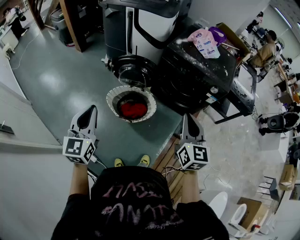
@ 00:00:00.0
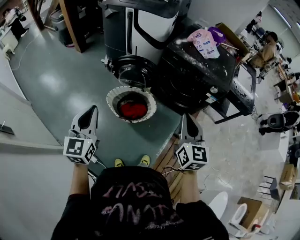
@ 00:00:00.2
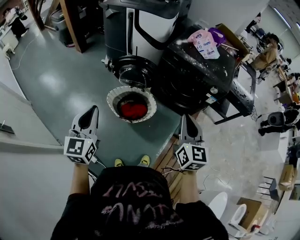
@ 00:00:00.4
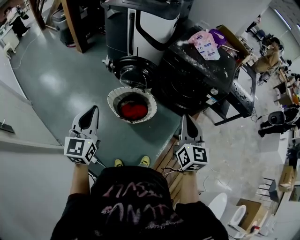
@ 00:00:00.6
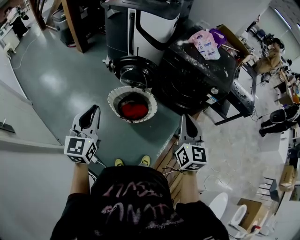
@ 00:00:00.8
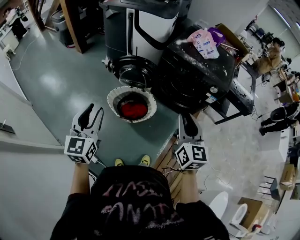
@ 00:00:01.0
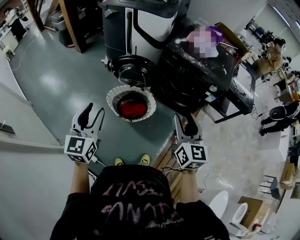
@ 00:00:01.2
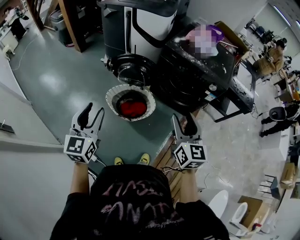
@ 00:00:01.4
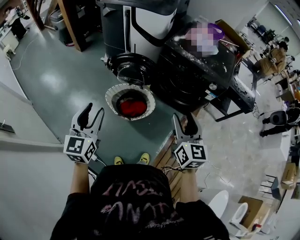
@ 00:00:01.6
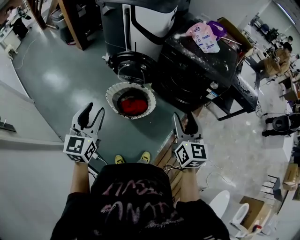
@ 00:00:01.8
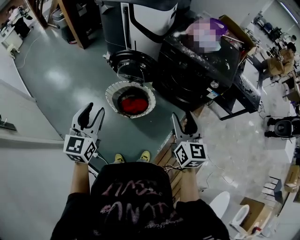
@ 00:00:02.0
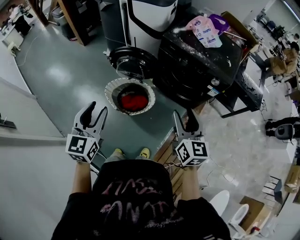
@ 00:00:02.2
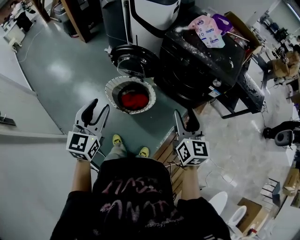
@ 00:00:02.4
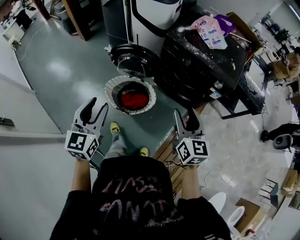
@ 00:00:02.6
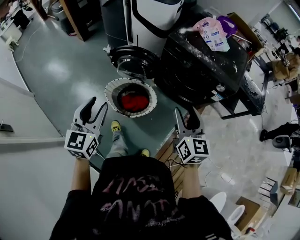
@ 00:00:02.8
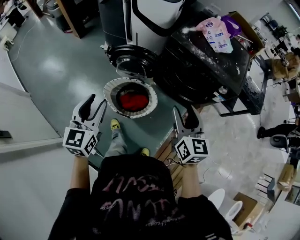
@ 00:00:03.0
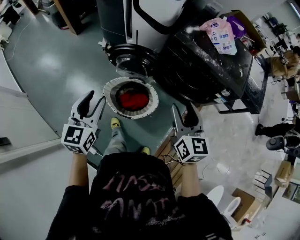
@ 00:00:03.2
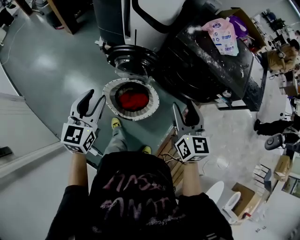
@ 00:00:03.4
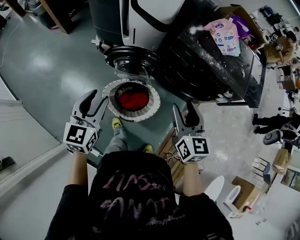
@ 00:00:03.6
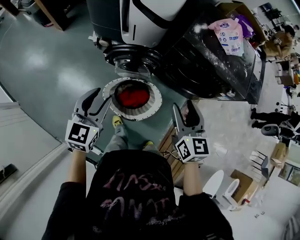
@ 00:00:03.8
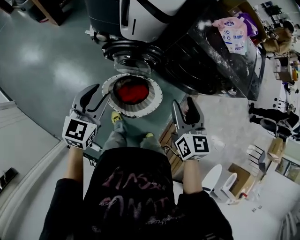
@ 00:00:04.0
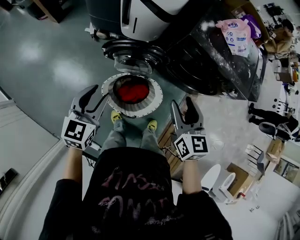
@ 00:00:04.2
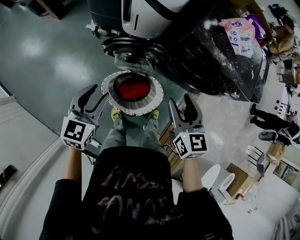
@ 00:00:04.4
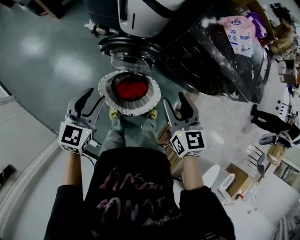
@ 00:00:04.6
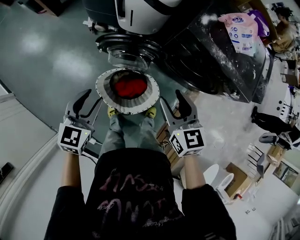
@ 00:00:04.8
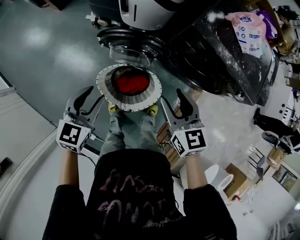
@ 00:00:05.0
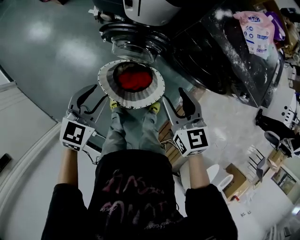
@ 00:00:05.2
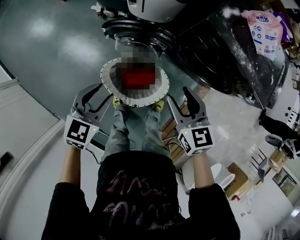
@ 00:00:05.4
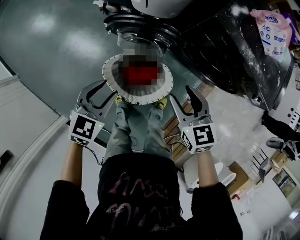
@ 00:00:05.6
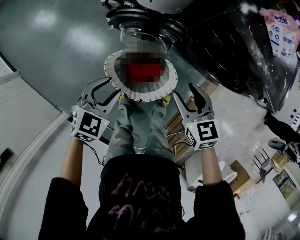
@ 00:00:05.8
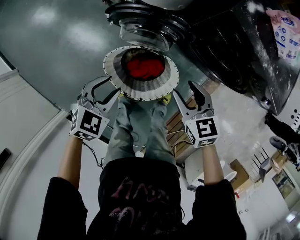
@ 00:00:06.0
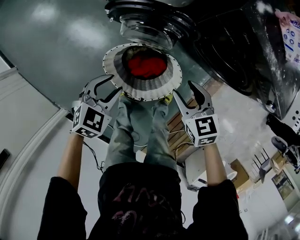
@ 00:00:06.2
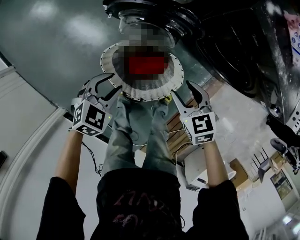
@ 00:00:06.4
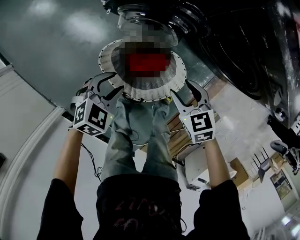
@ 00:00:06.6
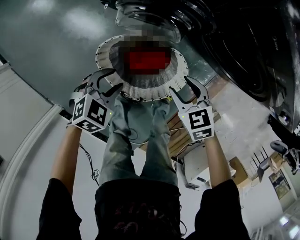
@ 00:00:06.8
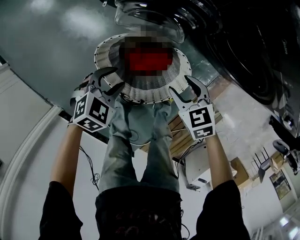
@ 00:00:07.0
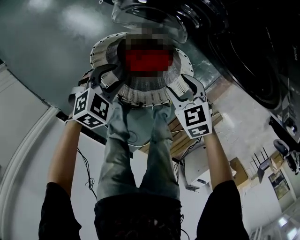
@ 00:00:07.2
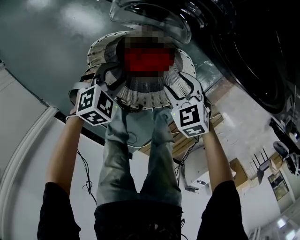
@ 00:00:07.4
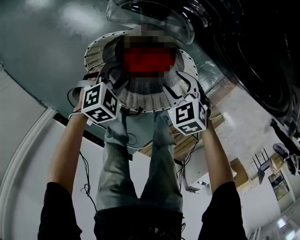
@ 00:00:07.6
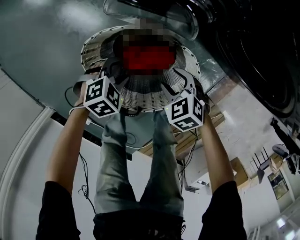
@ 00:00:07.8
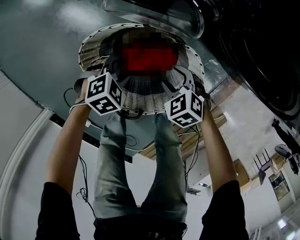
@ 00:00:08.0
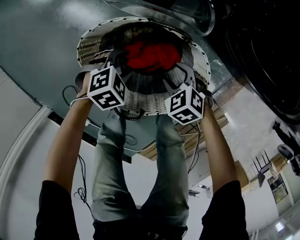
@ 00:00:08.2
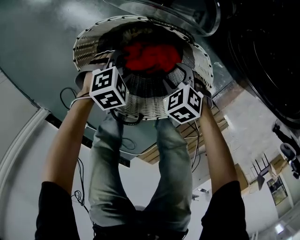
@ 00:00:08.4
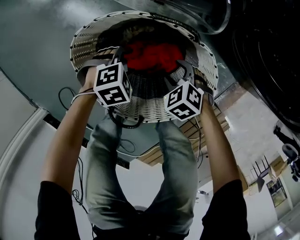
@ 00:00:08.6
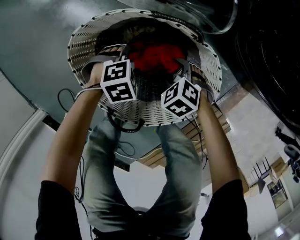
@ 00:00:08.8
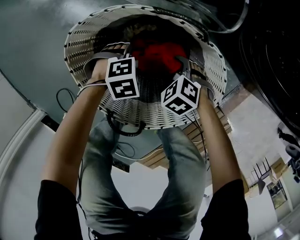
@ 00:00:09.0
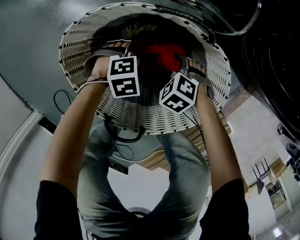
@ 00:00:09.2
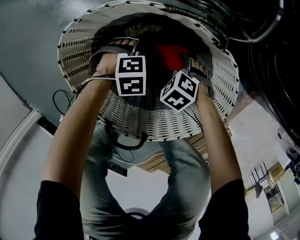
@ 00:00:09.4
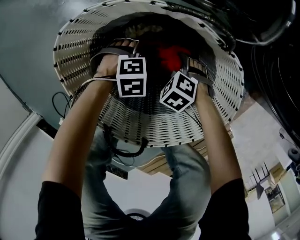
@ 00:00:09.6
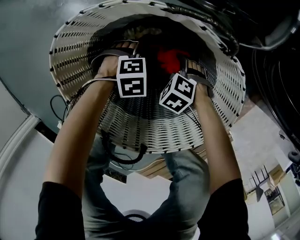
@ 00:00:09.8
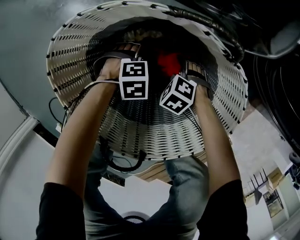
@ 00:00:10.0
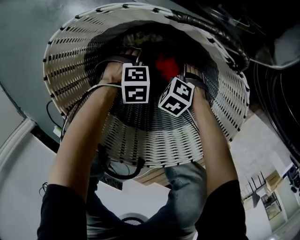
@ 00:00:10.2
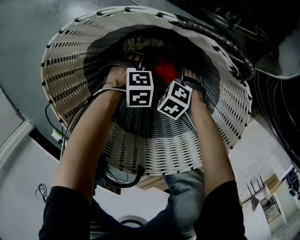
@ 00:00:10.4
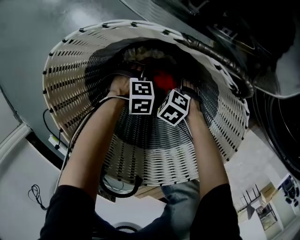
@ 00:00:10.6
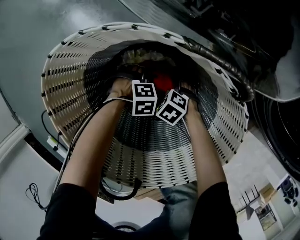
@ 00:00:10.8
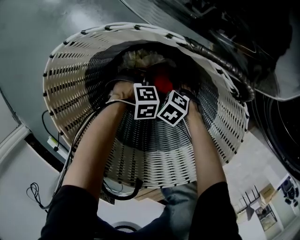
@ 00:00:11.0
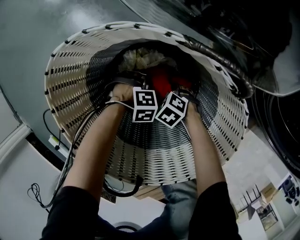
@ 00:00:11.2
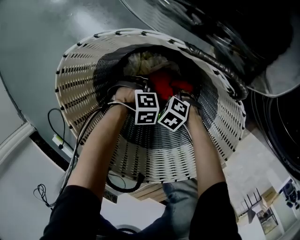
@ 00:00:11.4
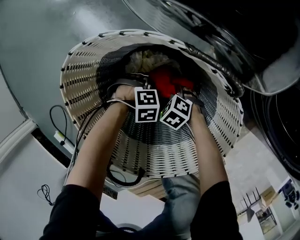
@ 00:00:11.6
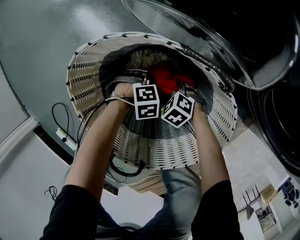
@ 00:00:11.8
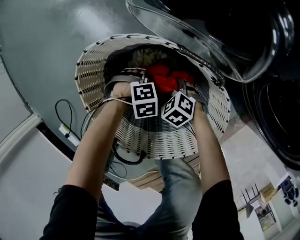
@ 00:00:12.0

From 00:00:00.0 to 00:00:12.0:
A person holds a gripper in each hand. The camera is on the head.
From 00:00:00.0 to 00:00:01.6: The right gripper opens.
From 00:00:01.6 to 00:00:03.0: The two grippers go about 10 cm forward.
From 00:00:03.0 to 00:00:04.4: The right gripper moves to the left and forward, about 20 cm; the left gripper is displaced forward, to the left and downward by approximately 25 cm, and swivels some 20 degrees.
From 00:00:04.4 to 00:00:06.0: Both grippers travel together downward, approximately 20 cm. The right gripper turns by about 30 degrees, while the left gripper rotates roughly 30 degrees.
From 00:00:06.0 to 00:00:07.6: Both grippers travel together downward, about 30 cm. The right gripper turns by some 30 degrees; the left gripper changes its angle by some 20 degrees.
From 00:00:07.6 to 00:00:09.0: The two grippers go approximately 20 cm downward. The right gripper changes its angle by about 20 degrees.
From 00:00:09.0 to 00:00:10.4: Both grippers travel together downward, about 15 cm. The right gripper opens its fingers. Meanwhile the left gripper opens its fingers.
From 00:00:10.4 to 00:00:12.0: The grippers both shift upward by approximately 10 cm. The right gripper closes its fingers; the left gripper closes its fingers.

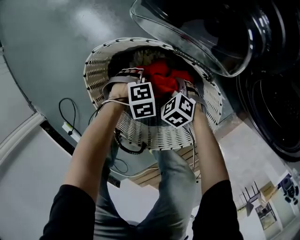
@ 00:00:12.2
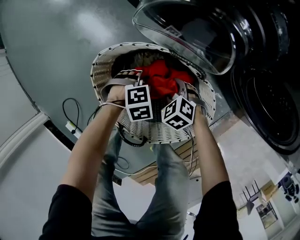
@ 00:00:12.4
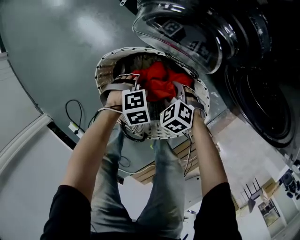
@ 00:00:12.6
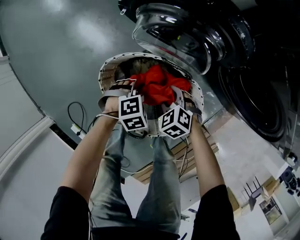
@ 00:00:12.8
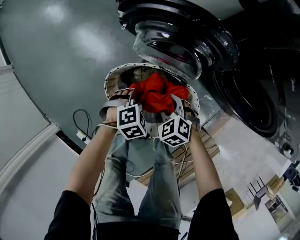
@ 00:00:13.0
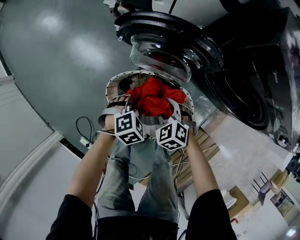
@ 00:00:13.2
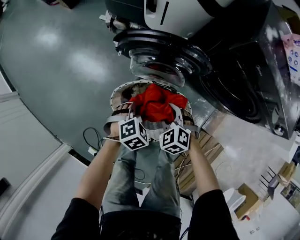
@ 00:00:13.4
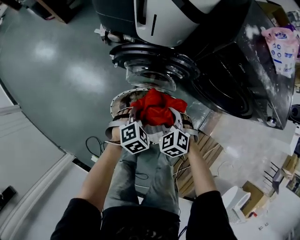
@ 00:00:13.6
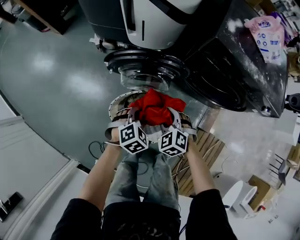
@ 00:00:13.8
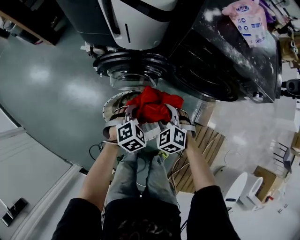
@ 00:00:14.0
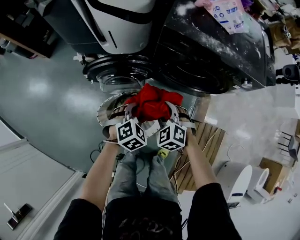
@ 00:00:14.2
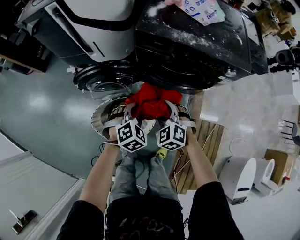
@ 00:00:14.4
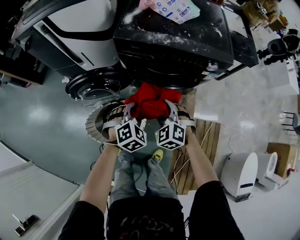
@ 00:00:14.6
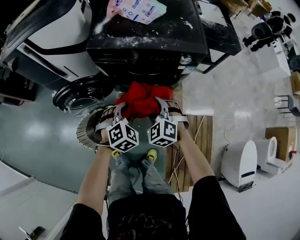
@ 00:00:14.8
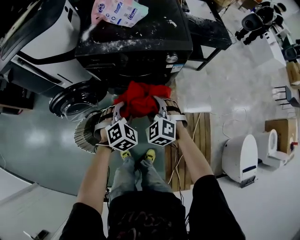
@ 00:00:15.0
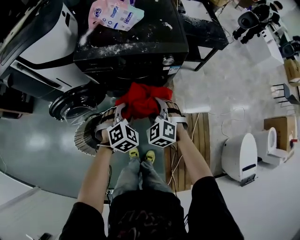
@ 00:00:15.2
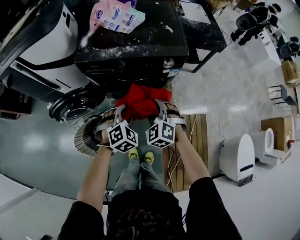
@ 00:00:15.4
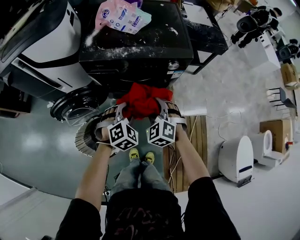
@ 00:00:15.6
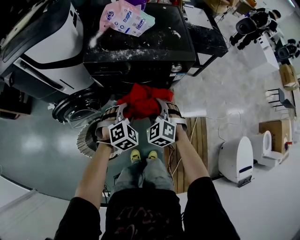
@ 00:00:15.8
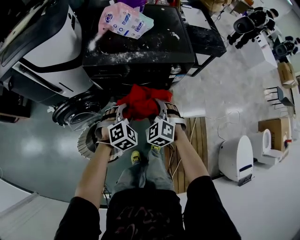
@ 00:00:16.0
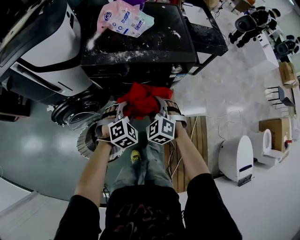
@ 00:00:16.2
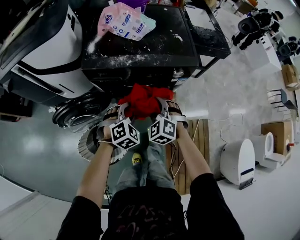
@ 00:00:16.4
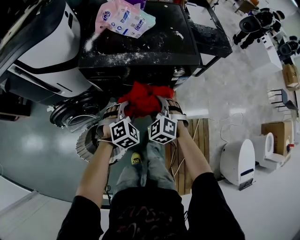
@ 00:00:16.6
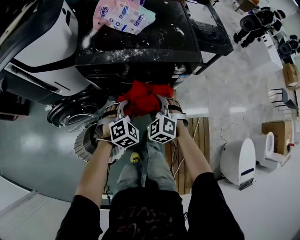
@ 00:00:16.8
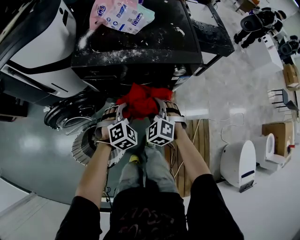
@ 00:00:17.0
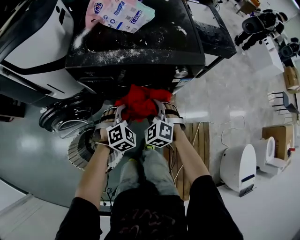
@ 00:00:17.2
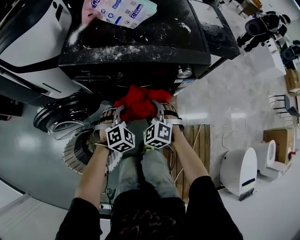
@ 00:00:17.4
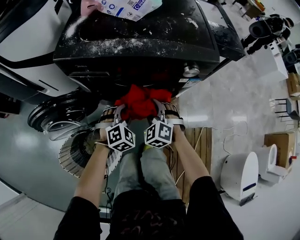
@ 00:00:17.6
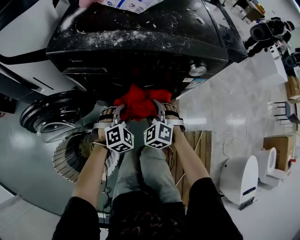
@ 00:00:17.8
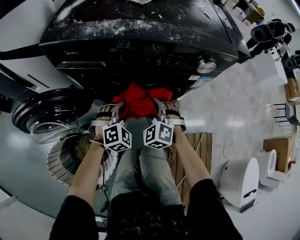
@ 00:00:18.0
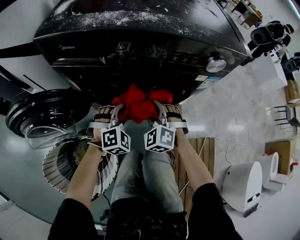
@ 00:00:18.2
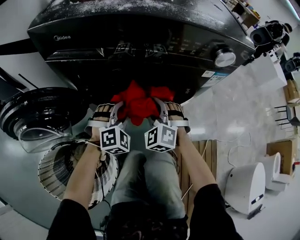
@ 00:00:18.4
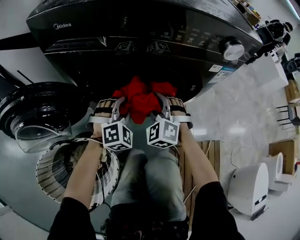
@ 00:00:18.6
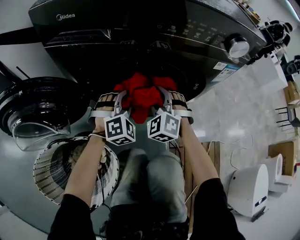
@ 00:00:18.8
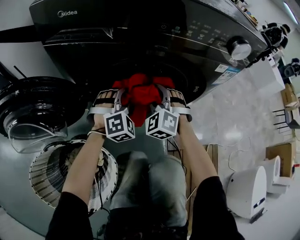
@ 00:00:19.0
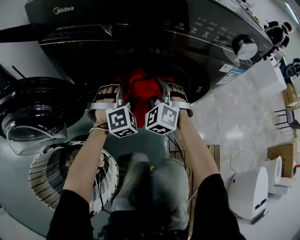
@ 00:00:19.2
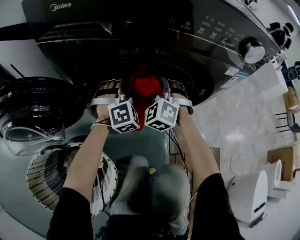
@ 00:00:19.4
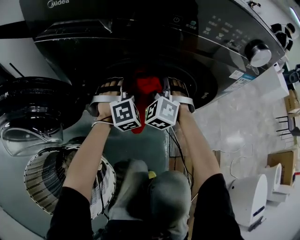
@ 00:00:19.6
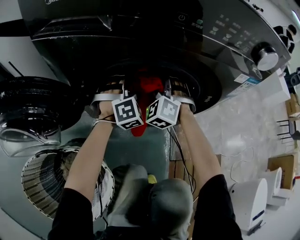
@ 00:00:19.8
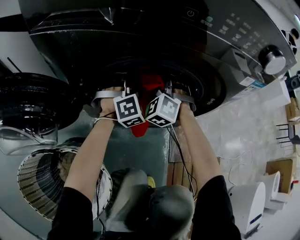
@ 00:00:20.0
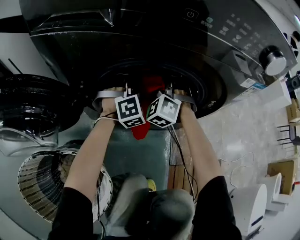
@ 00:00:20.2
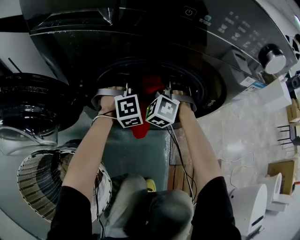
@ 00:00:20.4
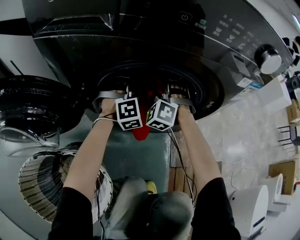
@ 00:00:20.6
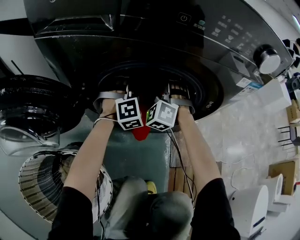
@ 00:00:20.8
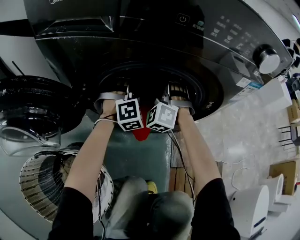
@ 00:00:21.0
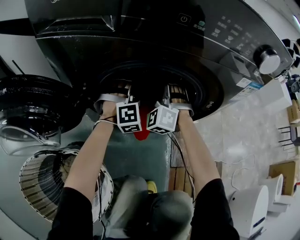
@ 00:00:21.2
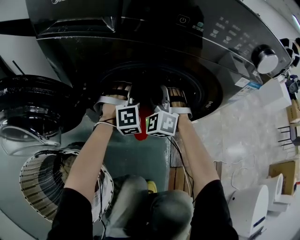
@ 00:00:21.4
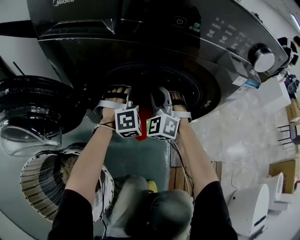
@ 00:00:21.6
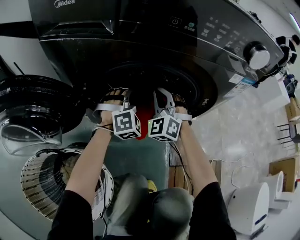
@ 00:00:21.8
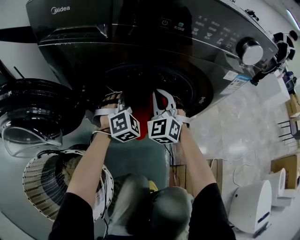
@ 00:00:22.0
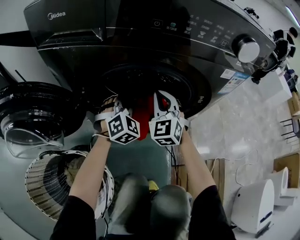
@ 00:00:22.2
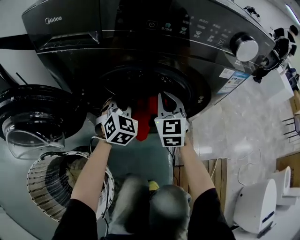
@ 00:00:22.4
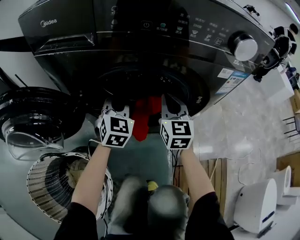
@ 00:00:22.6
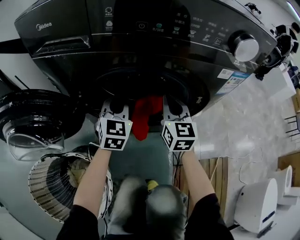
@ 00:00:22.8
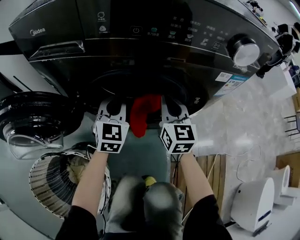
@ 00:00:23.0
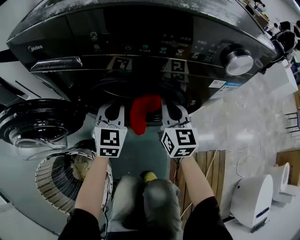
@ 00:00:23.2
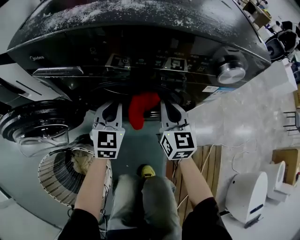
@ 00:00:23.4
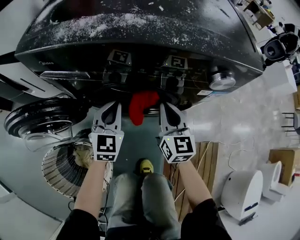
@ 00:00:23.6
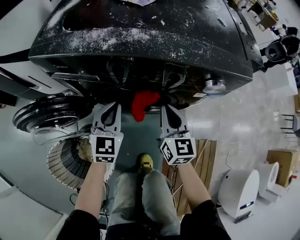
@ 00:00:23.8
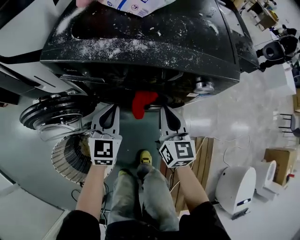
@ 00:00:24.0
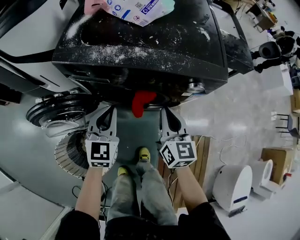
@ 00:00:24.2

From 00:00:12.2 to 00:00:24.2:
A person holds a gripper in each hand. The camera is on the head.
From 00:00:12.2 to 00:00:13.8: The grippers both shift upward by approximately 40 cm. The right gripper rotates roughly 30 degrees.
From 00:00:13.8 to 00:00:15.2: The two grippers go roughly 40 cm to the right and upward. The right gripper rotates some 30 degrees. The left gripper swivels about 30 degrees.
From 00:00:15.2 to 00:00:16.6: The two grippers go about 5 cm forward.
From 00:00:16.6 to 00:00:18.2: The two grippers go approximately 30 cm downward.
From 00:00:18.2 to 00:00:19.8: Both grippers move forward and downward, some 15 cm. The left gripper swivels approximately 20 degrees.
From 00:00:19.8 to 00:00:21.2: The grippers stay close to where they were, moving slightly.
From 00:00:21.2 to 00:00:22.6: The left gripper is displaced upward and backward by approximately 10 cm, rolls counterclockwise, seen from behind, by some 50 degrees, and closes its fingers; the right gripper goes some 10 cm to the right, backward and upward, rolls clockwise, seen from behind, by some 70 degrees, and closes up.
From 00:00:22.6 to 00:00:24.2: Both grippers travel together upward and backward, some 30 cm.
